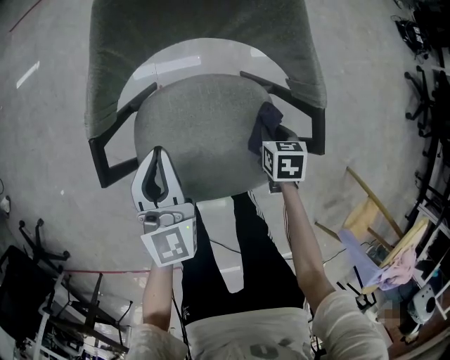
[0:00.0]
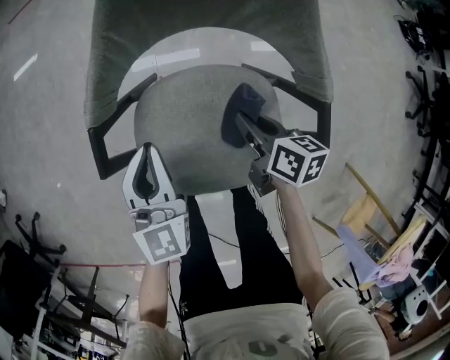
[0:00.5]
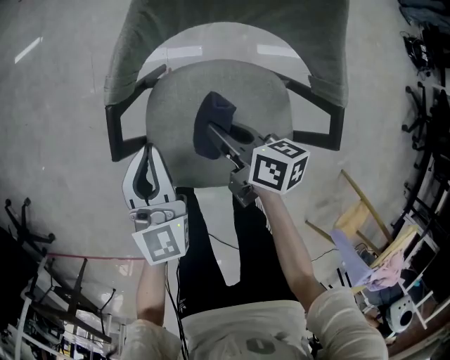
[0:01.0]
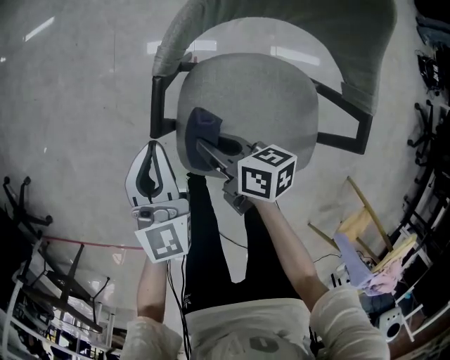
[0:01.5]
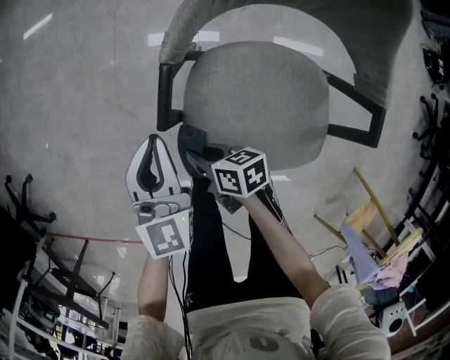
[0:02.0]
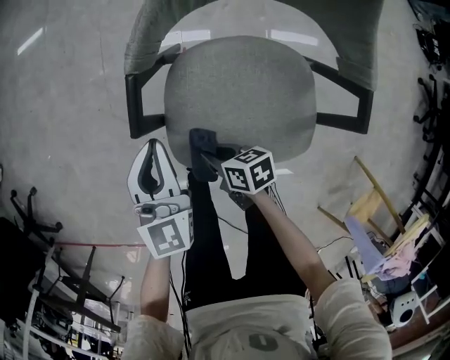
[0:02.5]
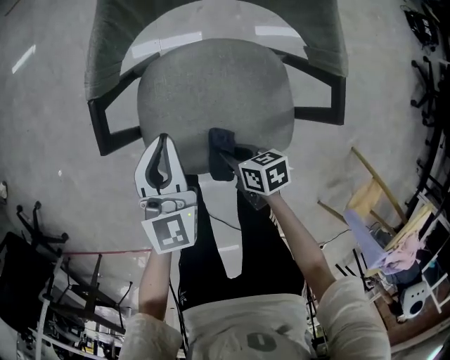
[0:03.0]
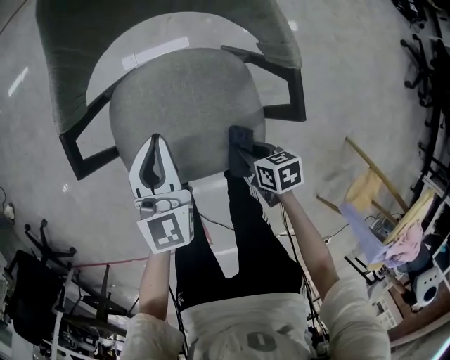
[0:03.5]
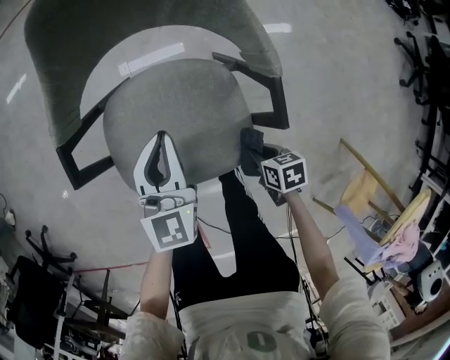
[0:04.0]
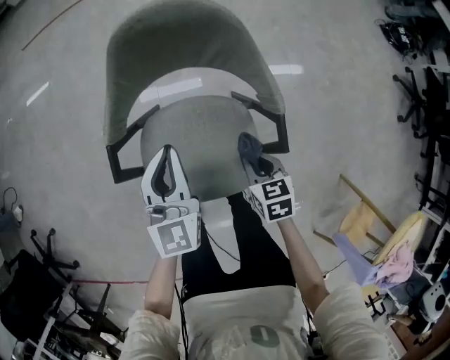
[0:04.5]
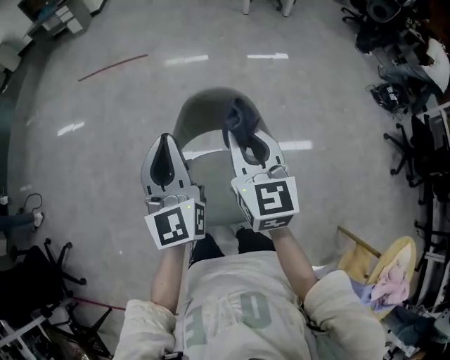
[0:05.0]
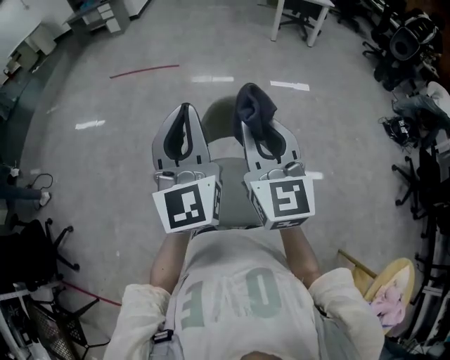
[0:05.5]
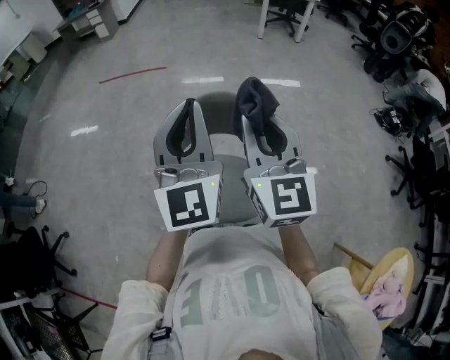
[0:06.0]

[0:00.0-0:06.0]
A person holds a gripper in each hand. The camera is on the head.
0:00.0 to 0:02.0: The left gripper shifts by approximately 20 cm; the right gripper goes upward and returns, roughly 10 cm each way, and tilts its fingers some 30 degrees upward.
0:02.0 to 0:04.0: The left gripper travels to the right by some 25 cm. Meanwhile the right gripper moves to the right and backward, some 40 cm, and turns by some 30 degrees.
0:04.0 to 0:06.0: The two grippers go approximately 60 cm upward. The left gripper points its fingers roughly 40 degrees further upward, while the right gripper angles its fingers upward, by roughly 70 degrees.

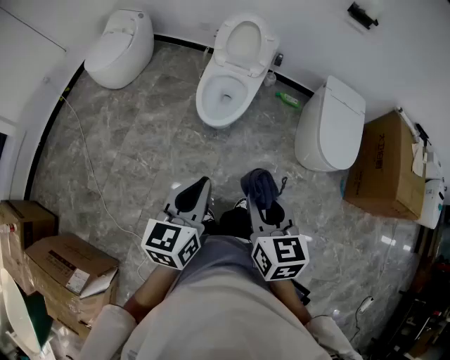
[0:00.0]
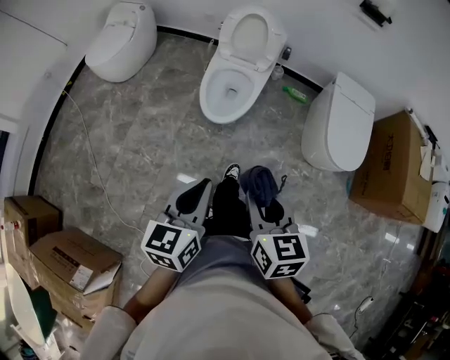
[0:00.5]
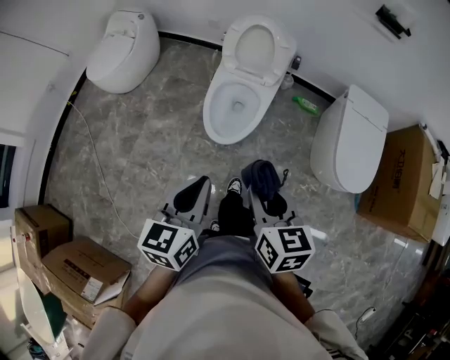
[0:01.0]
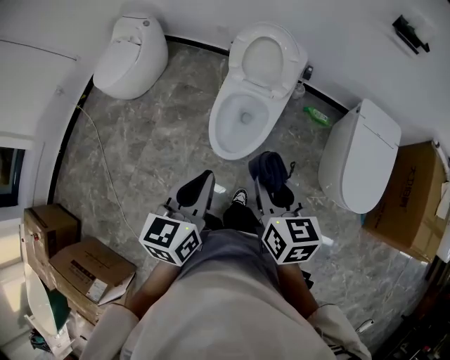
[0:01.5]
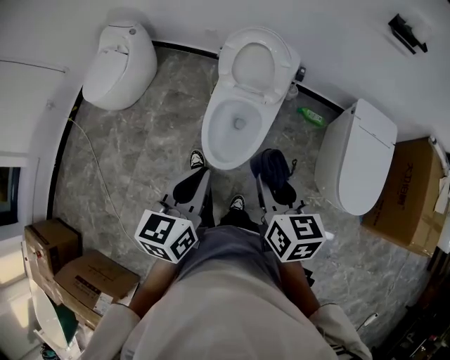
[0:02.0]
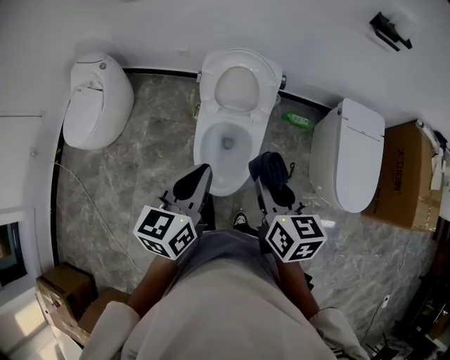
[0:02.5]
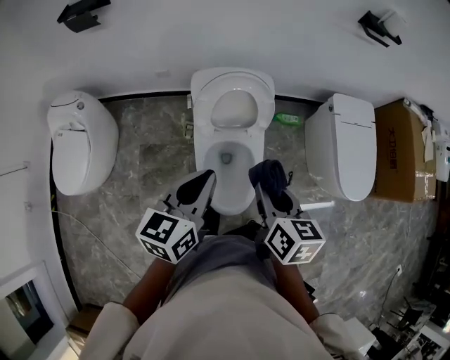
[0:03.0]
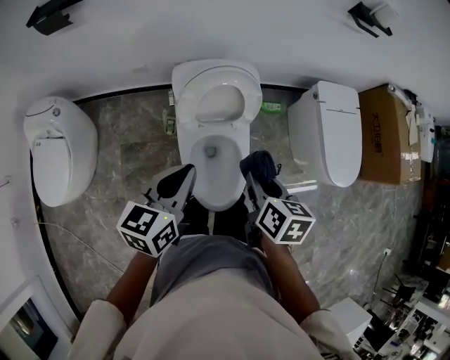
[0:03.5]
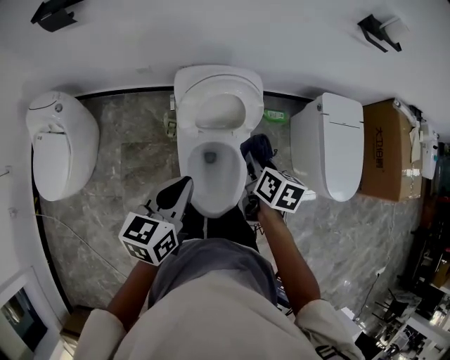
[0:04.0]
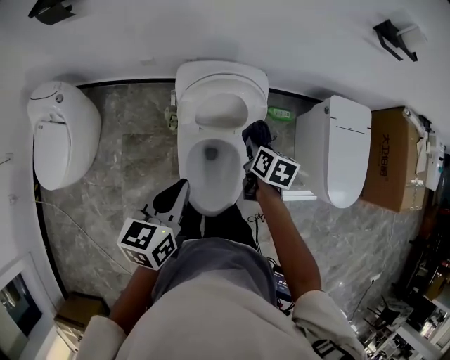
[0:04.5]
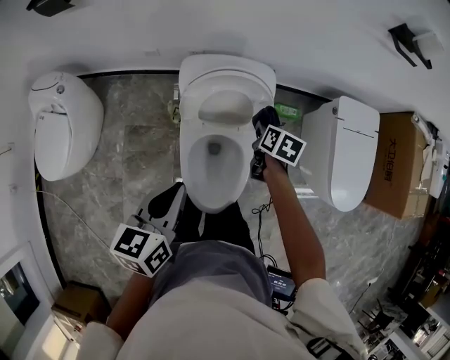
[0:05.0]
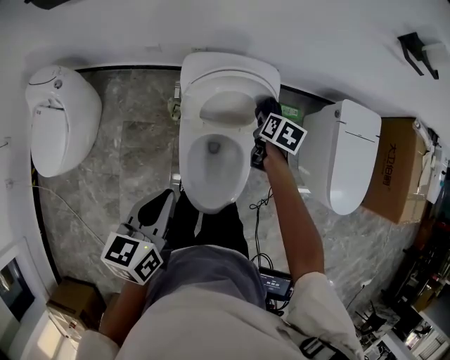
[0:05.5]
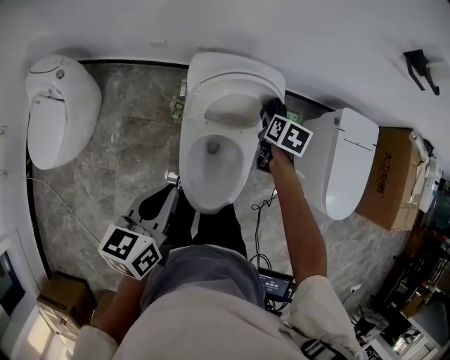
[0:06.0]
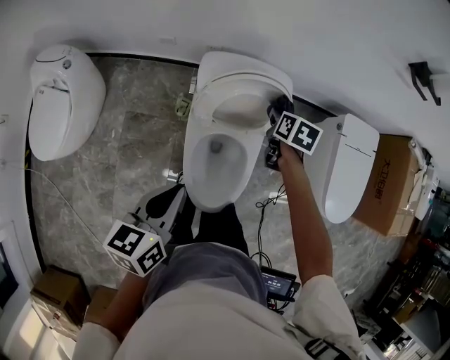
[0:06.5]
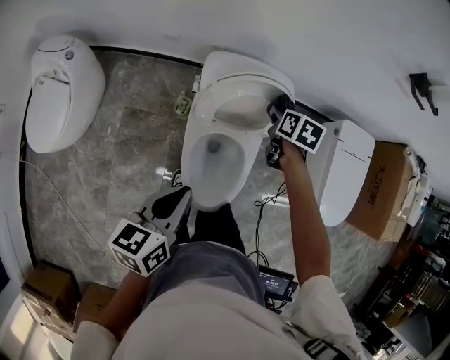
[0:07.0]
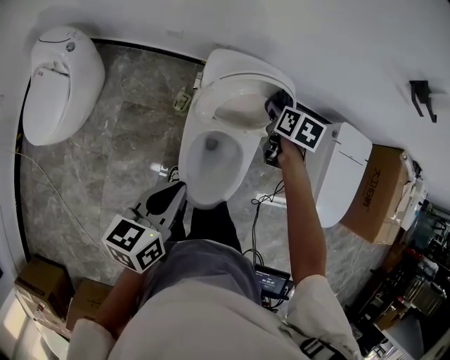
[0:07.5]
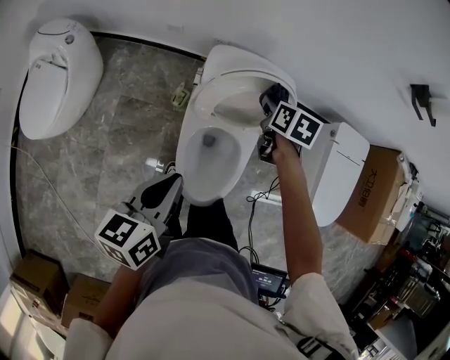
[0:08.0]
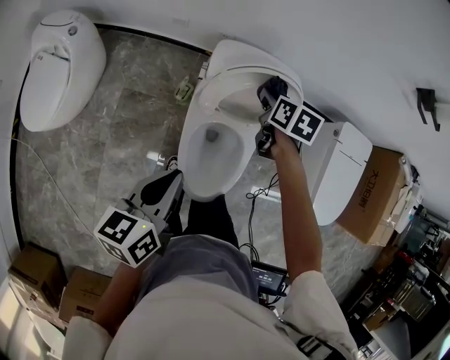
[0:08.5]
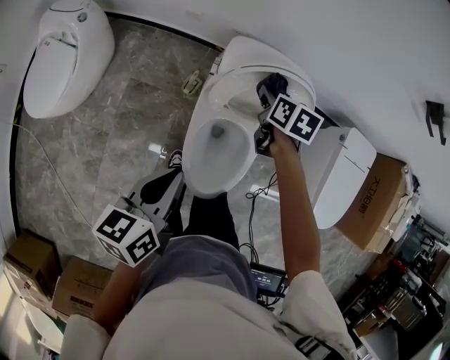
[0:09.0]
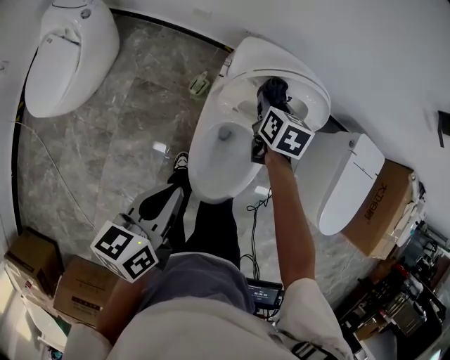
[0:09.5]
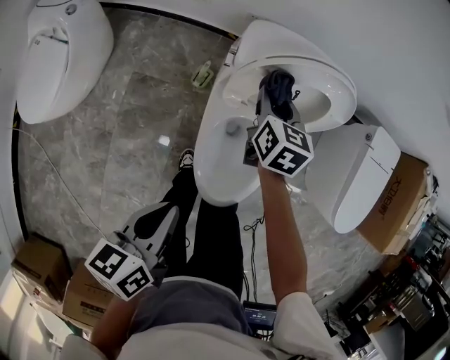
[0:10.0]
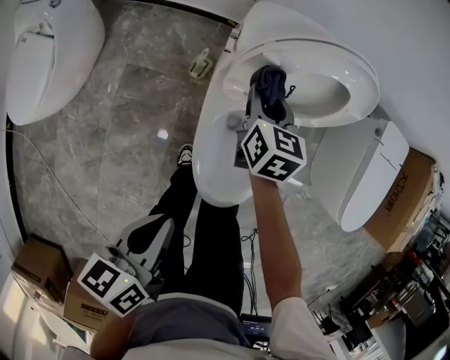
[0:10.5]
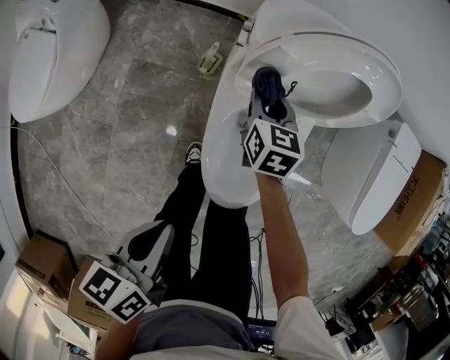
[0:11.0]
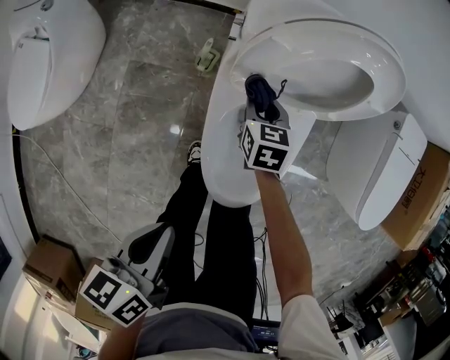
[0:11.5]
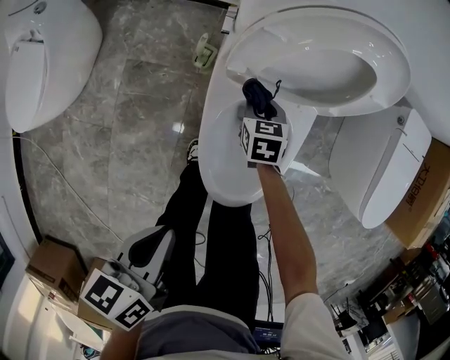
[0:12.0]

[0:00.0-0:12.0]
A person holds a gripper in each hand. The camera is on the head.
0:00.0 to 0:02.0: The two grippers go some 40 cm forward.
0:02.0 to 0:04.0: The left gripper shifts by about 30 cm, and turns by about 30 degrees; the right gripper ends up roughly 35 cm from where it was, and changes its angle by approximately 40 degrees.
0:04.0 to 0:06.0: The right gripper is displaced forward and downward by roughly 20 cm.
0:06.0 to 0:08.0: The right gripper is displaced to the left and upward by approximately 10 cm.
0:08.0 to 0:10.0: The right gripper shifts some 15 cm to the left and downward; the left gripper travels downward and backward by about 10 cm.
0:10.0 to 0:12.0: The left gripper travels downward by about 10 cm. Meanwhile the right gripper goes roughly 25 cm downward, and turns by approximately 20 degrees.

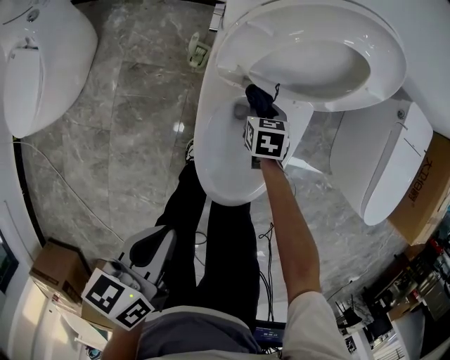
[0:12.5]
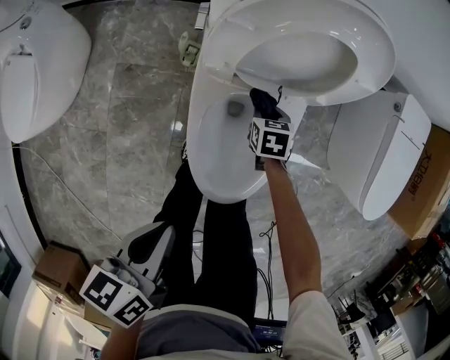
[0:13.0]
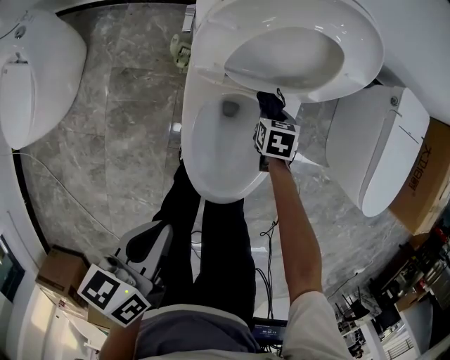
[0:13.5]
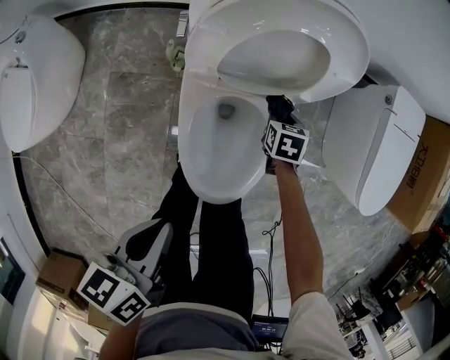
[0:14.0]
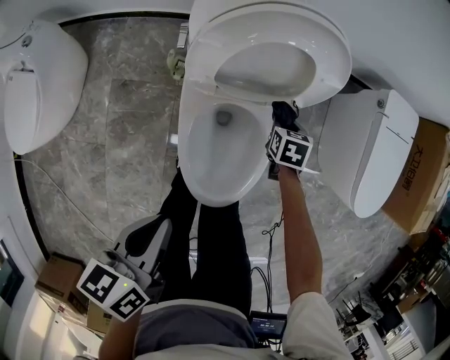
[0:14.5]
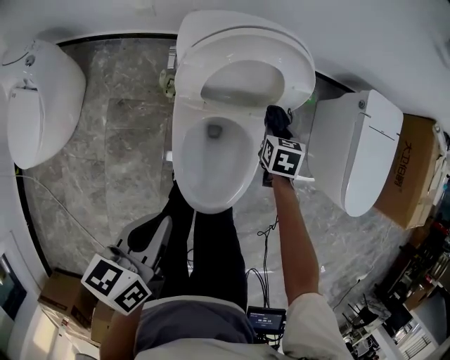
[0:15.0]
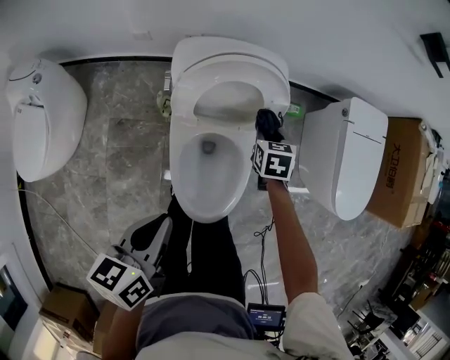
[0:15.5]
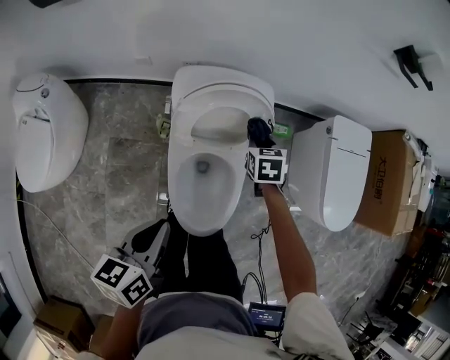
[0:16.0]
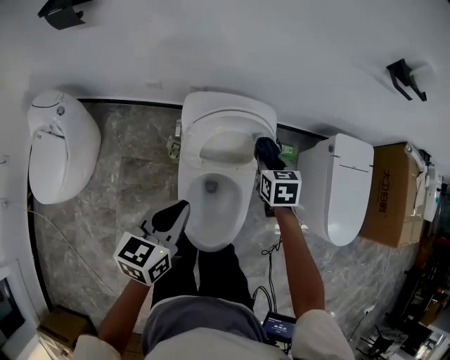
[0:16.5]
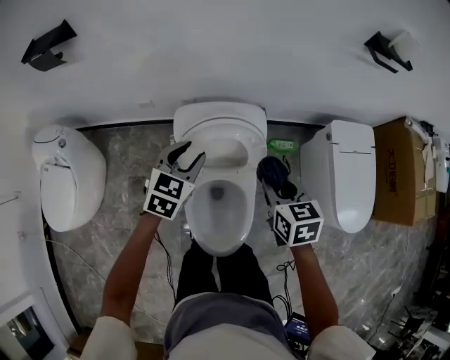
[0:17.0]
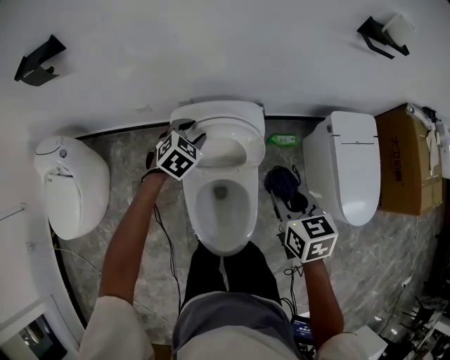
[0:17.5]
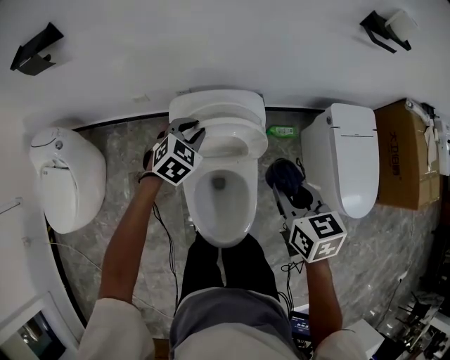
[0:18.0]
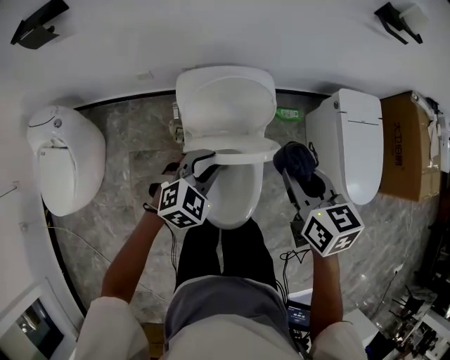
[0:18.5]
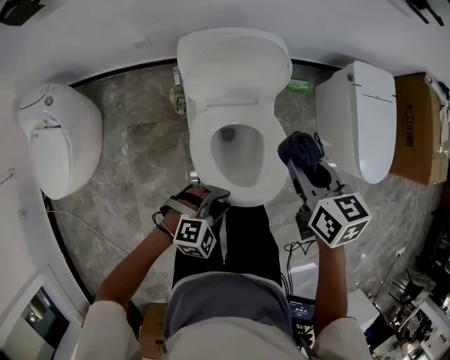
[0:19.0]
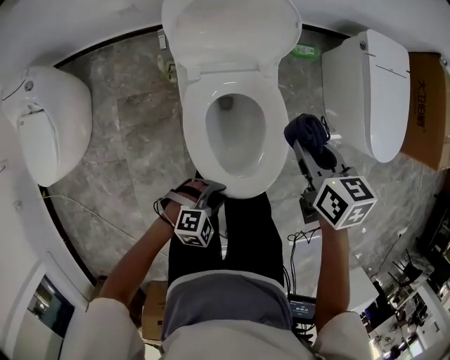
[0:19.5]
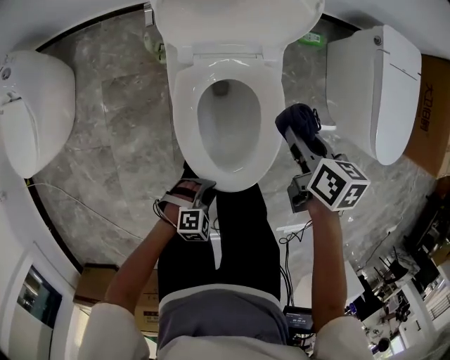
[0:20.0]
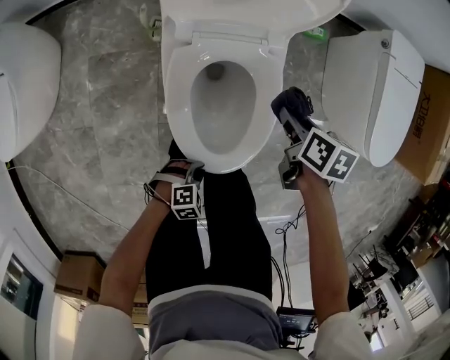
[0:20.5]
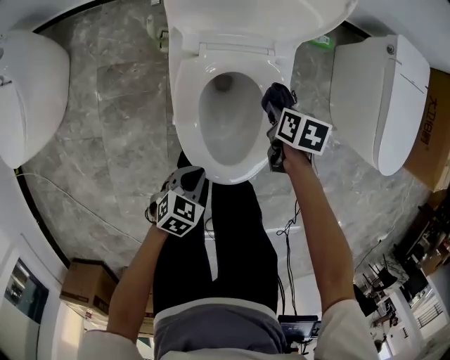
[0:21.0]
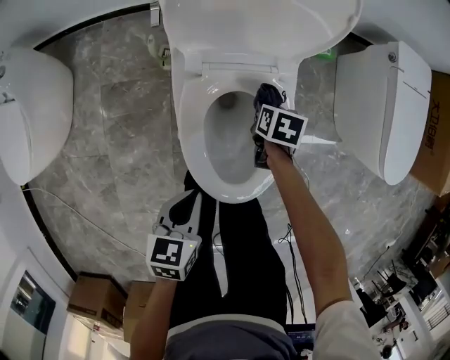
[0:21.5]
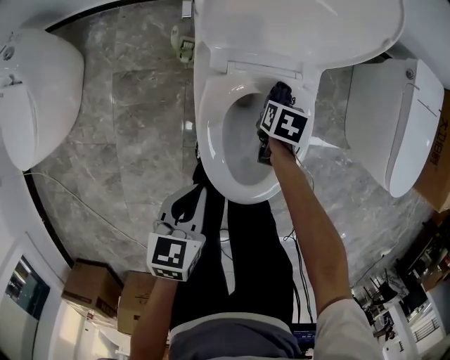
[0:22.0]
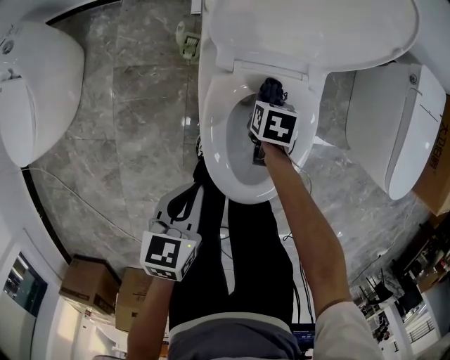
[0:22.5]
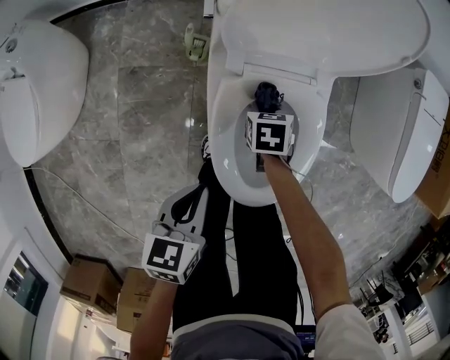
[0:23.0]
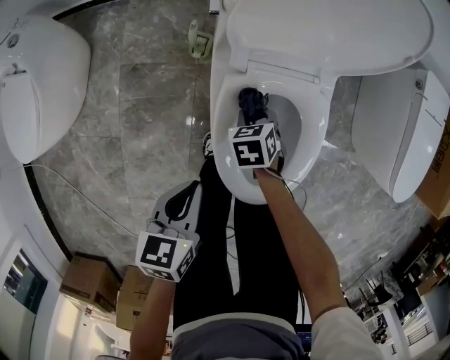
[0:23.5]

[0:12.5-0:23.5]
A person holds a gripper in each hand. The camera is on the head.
0:12.5 to 0:14.5: The left gripper moves about 5 cm. Meanwhile the right gripper shifts roughly 15 cm to the right.
0:14.5 to 0:16.0: The left gripper heads upward, covering approximately 10 cm. Meanwhile the right gripper heads upward, covering about 20 cm.
0:16.0 to 0:18.0: The left gripper shifts roughly 30 cm forward, and rolls clockwise, seen from behind, by about 70 degrees, while the right gripper travels upward and backward by some 20 cm, and rotates roughly 20 degrees.
0:18.0 to 0:20.0: The left gripper shifts roughly 60 cm backward, downward and to the right, and turns by approximately 40 degrees, while the right gripper travels downward by approximately 25 cm, and turns by some 30 degrees.
0:20.0 to 0:21.5: The left gripper moves to the left, forward and upward, about 15 cm, twists approximately 70 degrees counterclockwise, seen from behind, and closes up; the right gripper heads downward, covering about 20 cm, and swivels roughly 20 degrees.
0:21.5 to 0:23.5: The right gripper goes some 15 cm to the left, and changes its angle by approximately 40 degrees, while the left gripper travels to the left by approximately 10 cm.
